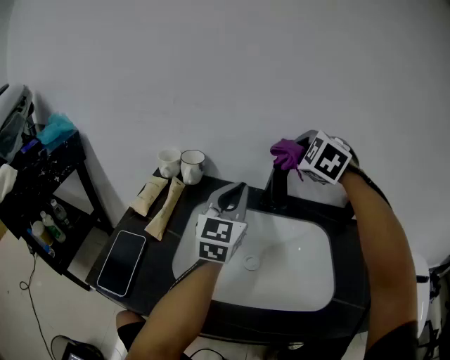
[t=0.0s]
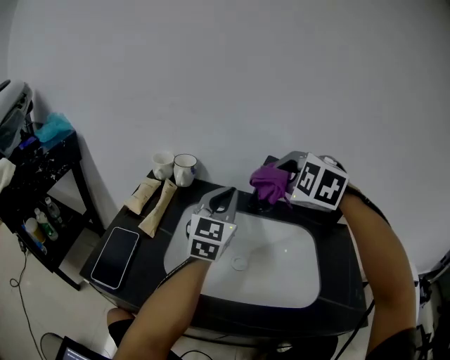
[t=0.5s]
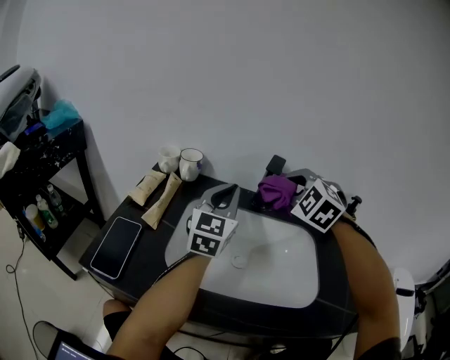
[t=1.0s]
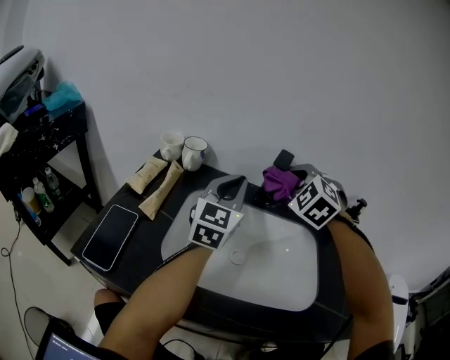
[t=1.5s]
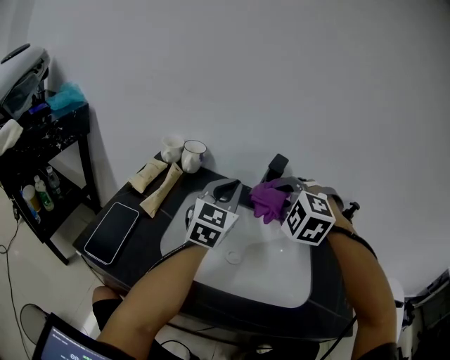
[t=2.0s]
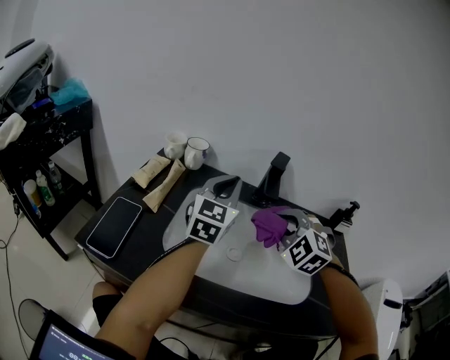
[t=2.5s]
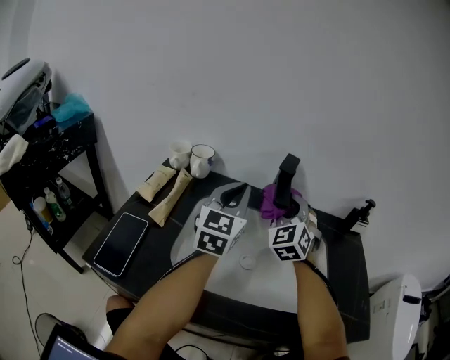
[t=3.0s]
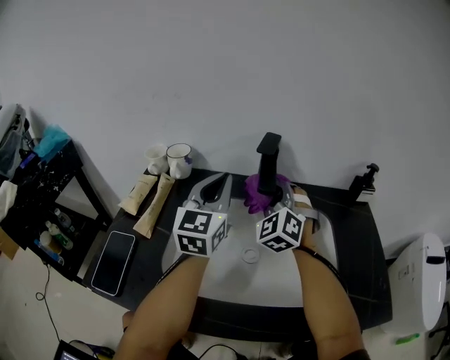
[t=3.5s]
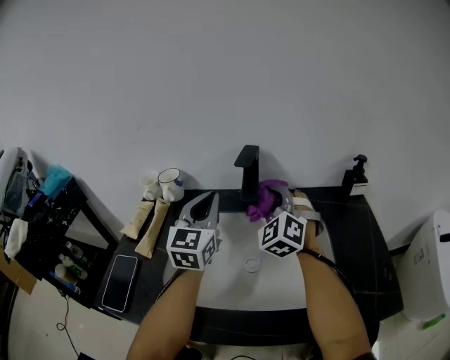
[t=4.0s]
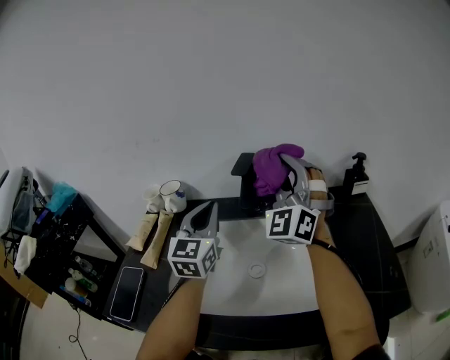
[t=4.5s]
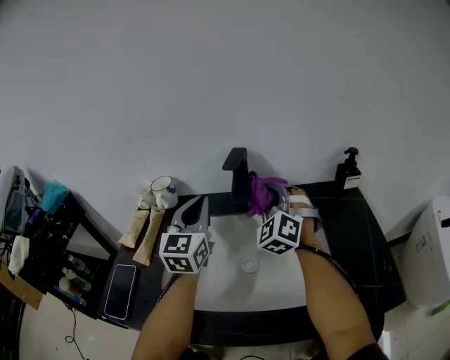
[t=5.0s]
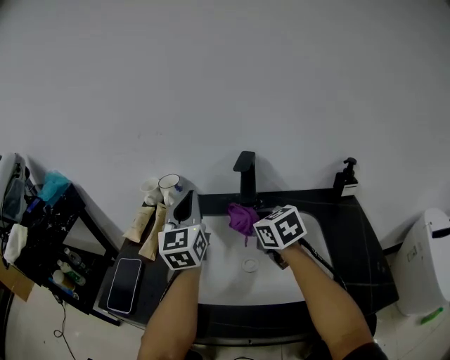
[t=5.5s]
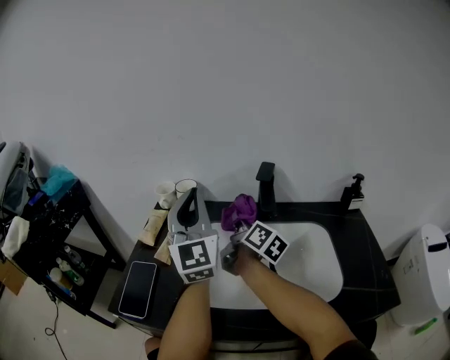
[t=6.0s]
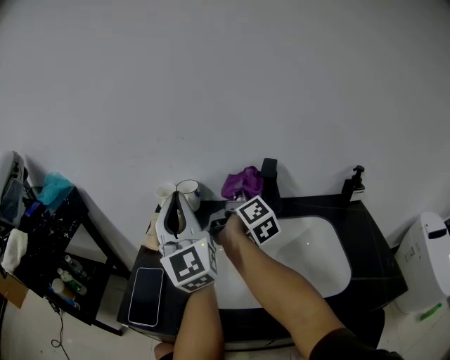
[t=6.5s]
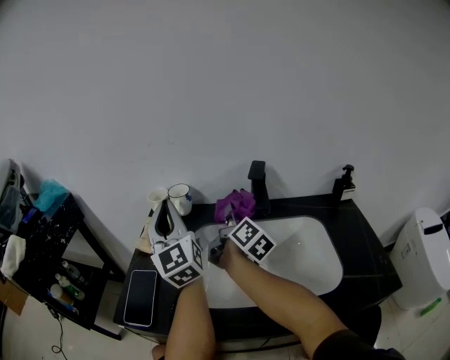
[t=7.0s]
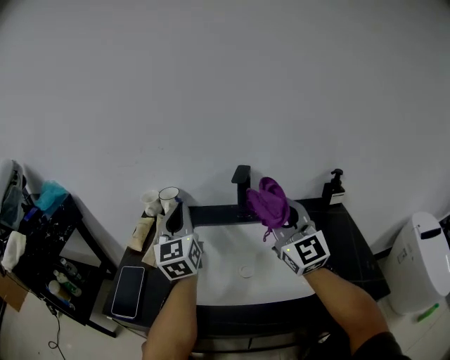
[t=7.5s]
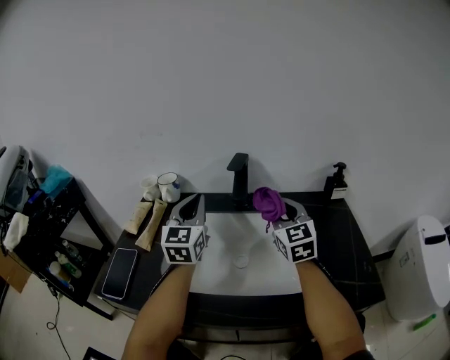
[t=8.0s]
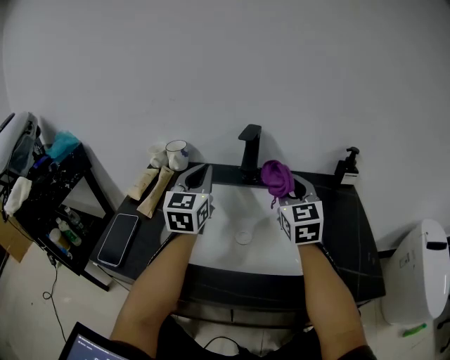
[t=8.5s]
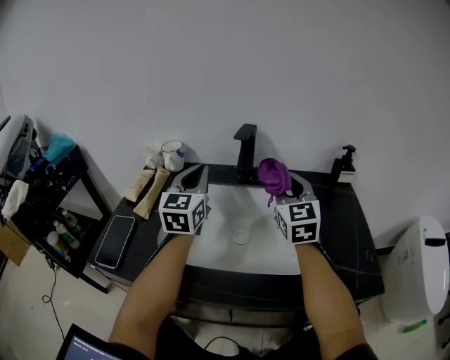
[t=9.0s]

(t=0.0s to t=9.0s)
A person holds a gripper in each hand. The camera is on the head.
t=0.0s - t=2.0s: The right gripper swings forward and backward, approximately 10 cm each way, with 2 reversals, and rotates approximately 20 degrees.
t=2.0s - t=4.5s: The right gripper travels to the right and upward by about 10 cm, and tips its fingers upward by about 60 degrees.
t=4.5s - t=7.0s: The left gripper shifts approximately 20 cm to the left and upward, and changes its angle by about 30 degrees. The right gripper moves up and down over about 15 cm, changing direction 2 times, and twists about 110 degrees clockwise, seen from behind.
t=7.0s - t=9.0s: The left gripper is displaced to the right and downward by some 15 cm, and swivels approximately 30 degrees; the right gripper goes approximately 20 cm to the right and backward, and rolls counterclockwise, seen from behind, by about 70 degrees.

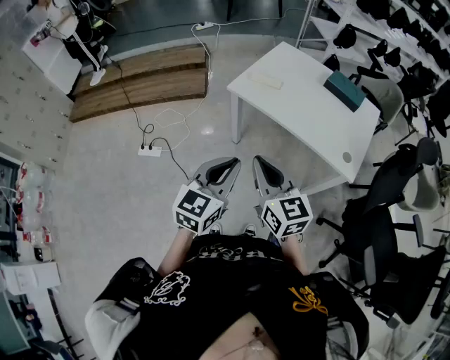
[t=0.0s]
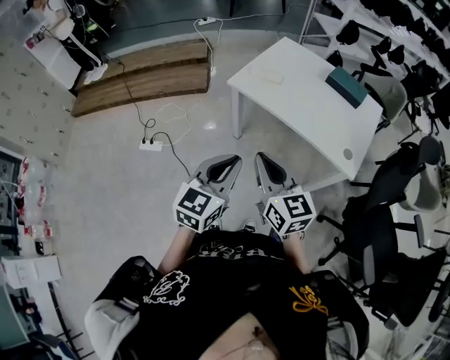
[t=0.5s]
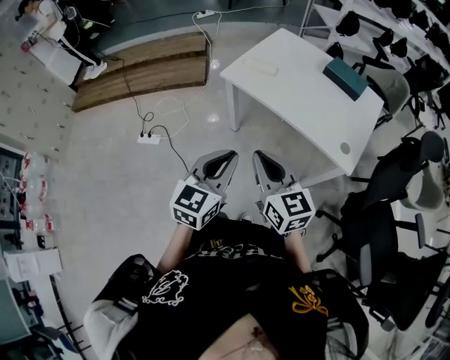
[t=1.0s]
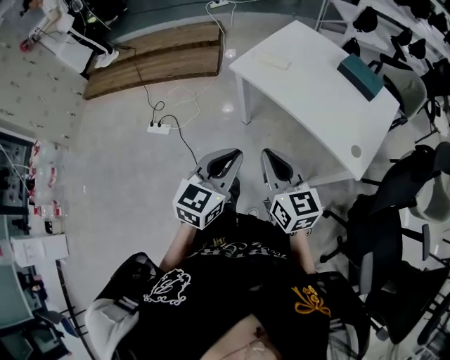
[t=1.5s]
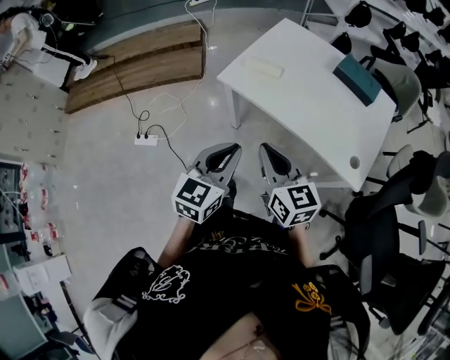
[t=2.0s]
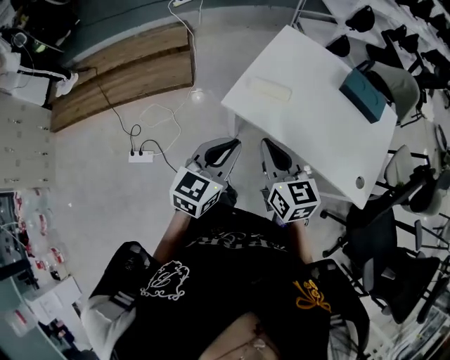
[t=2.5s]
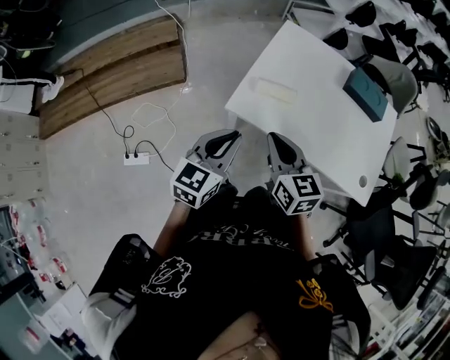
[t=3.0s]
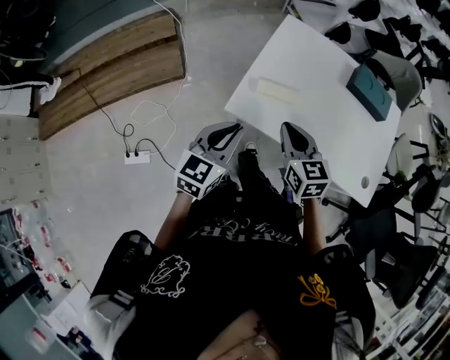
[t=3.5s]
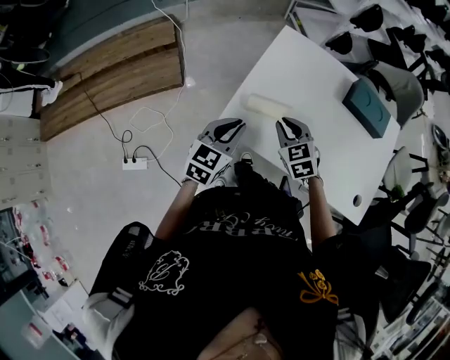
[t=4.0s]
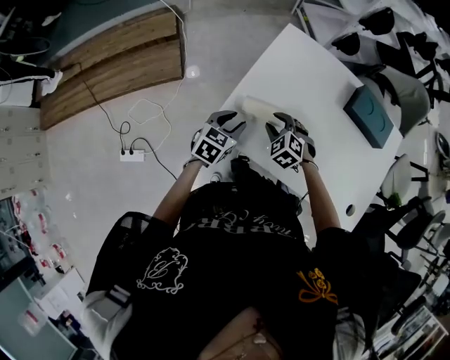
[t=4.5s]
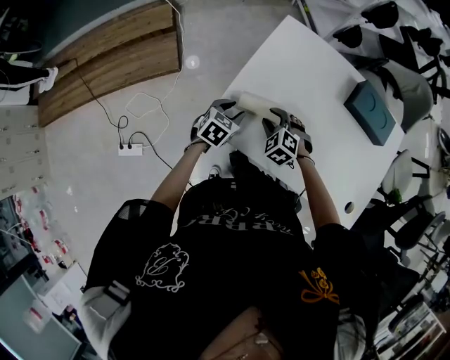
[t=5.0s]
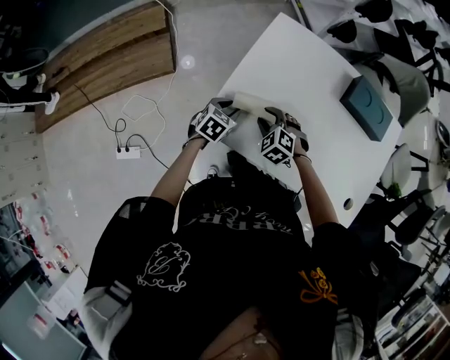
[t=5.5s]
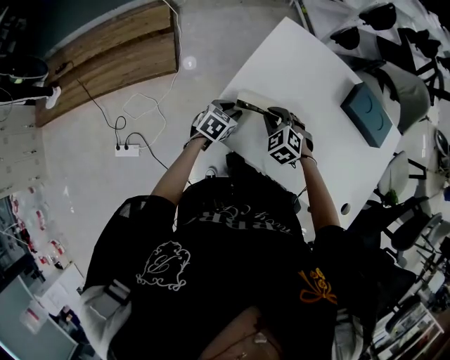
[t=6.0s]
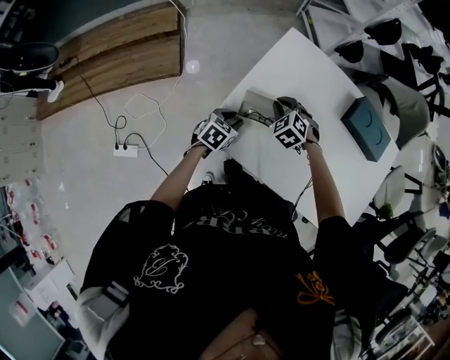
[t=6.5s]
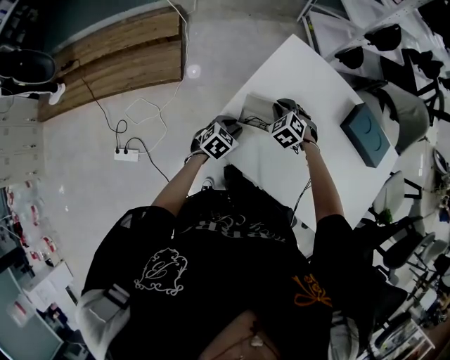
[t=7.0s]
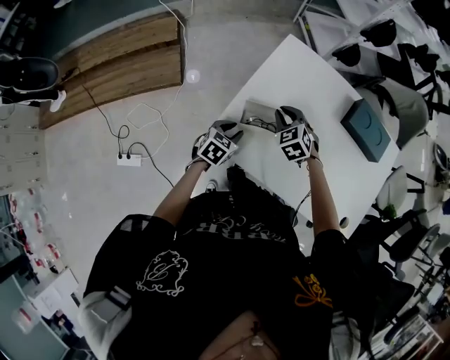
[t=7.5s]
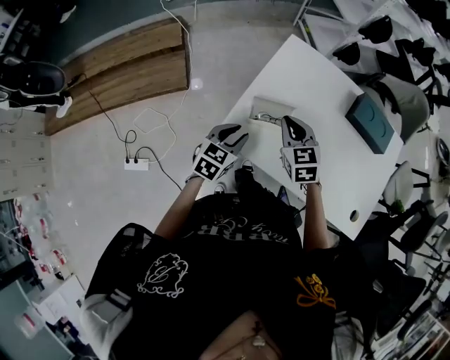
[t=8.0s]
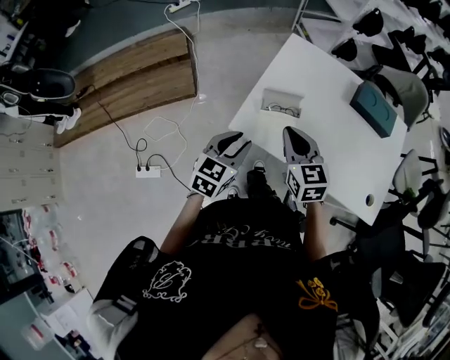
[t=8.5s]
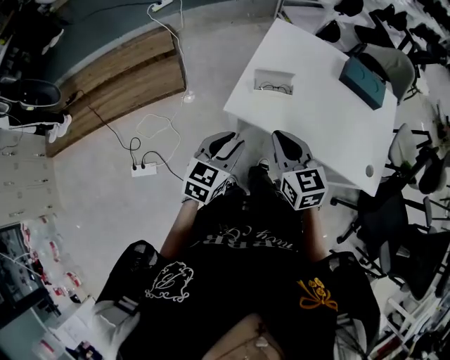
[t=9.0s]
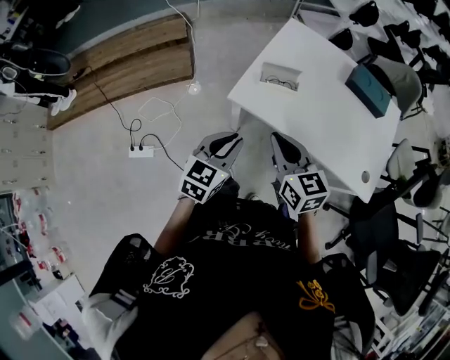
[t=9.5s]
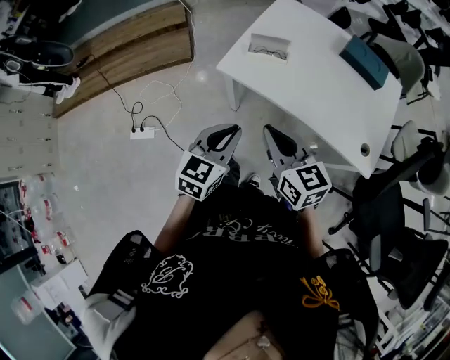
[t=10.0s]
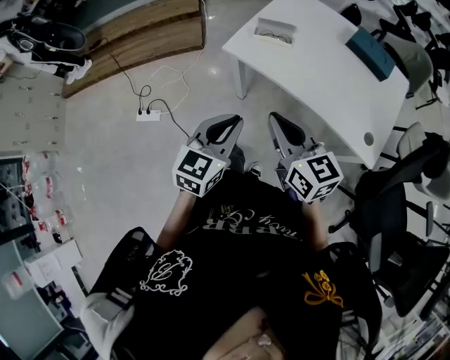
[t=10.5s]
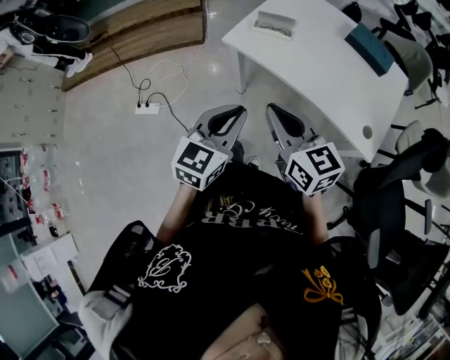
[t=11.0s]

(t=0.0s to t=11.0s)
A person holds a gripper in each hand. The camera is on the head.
t=0.0s - t=2.0s: Both grippers travel together forward, roughly 15 cm.
t=2.0s - t=3.5s: The left gripper heads forward and to the left, covering approximately 30 cm; the right gripper is displaced forward by approximately 30 cm, and turns by some 20 degrees.
t=3.5s - t=5.5s: The two grippers go approximately 25 cm downward and forward. The left gripper angles its fingers downward, by about 30 degrees, and opens its fingers. The right gripper rotates around the line of its fingers by about 50 degrees, counterclockwise from behind, and opens.
t=5.5s - t=7.5s: The right gripper is displaced forward and upward by roughly 10 cm, and closes up.
t=7.5s - t=9.0s: Both grippers move backward and upward, some 30 cm. The right gripper rotates roughly 40 degrees, while the left gripper rotates about 20 degrees.
t=9.0s - t=11.0s: The left gripper moves backward and to the right, approximately 25 cm, and closes its fingers, while the right gripper shifts approximately 25 cm backward, and turns by approximately 20 degrees.

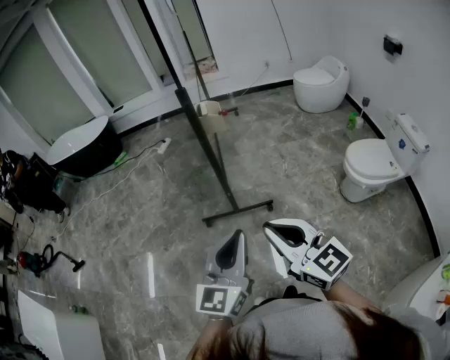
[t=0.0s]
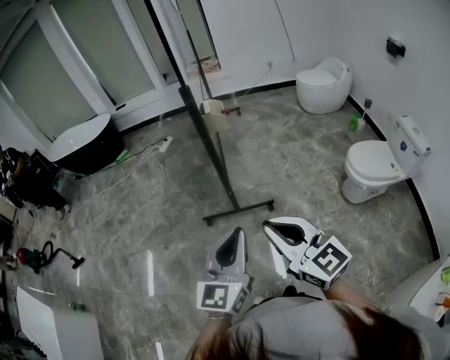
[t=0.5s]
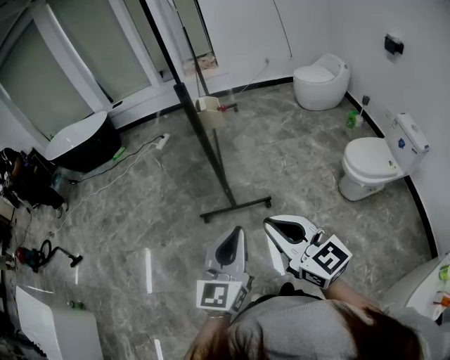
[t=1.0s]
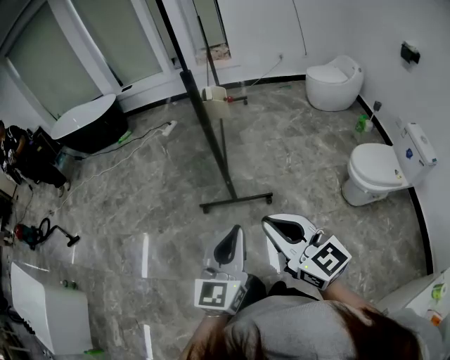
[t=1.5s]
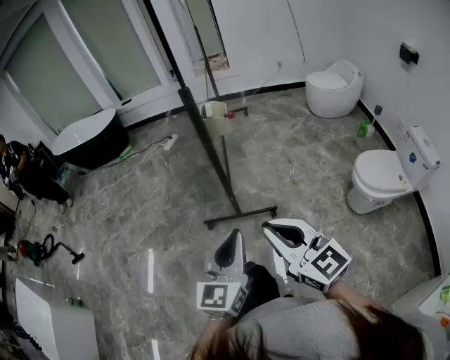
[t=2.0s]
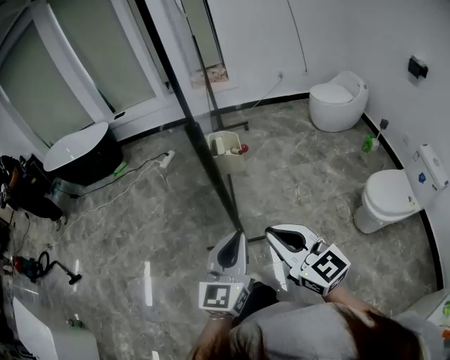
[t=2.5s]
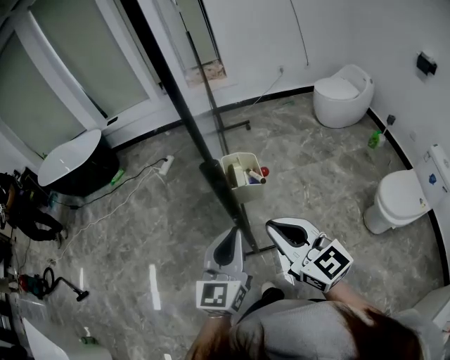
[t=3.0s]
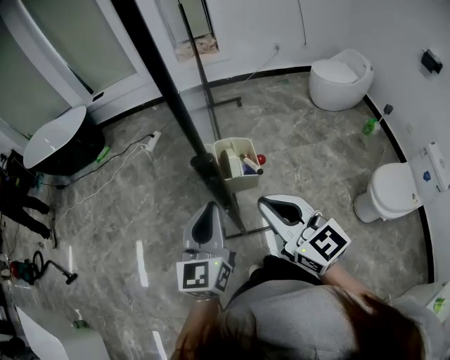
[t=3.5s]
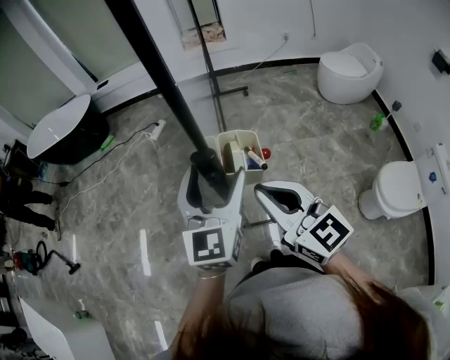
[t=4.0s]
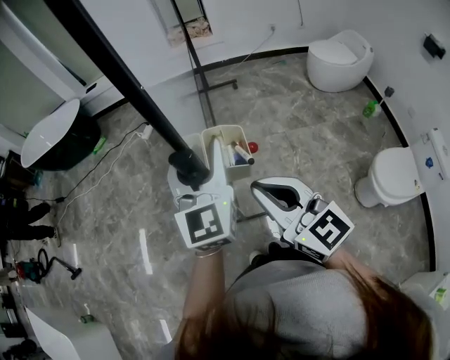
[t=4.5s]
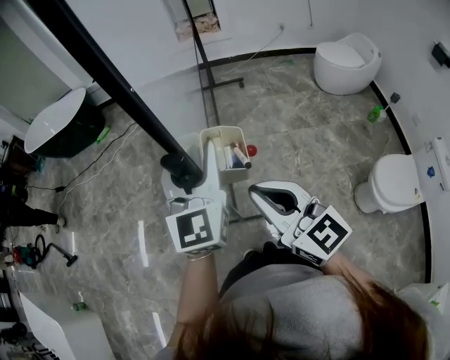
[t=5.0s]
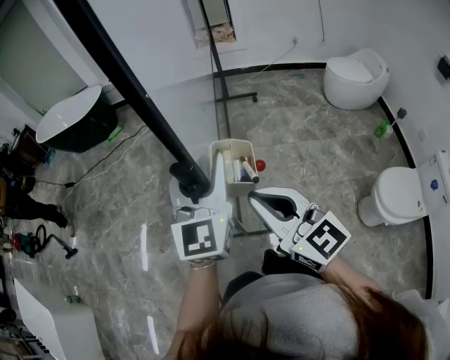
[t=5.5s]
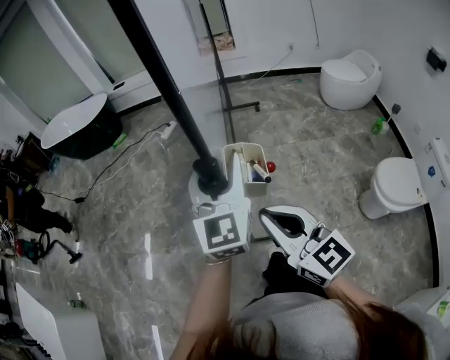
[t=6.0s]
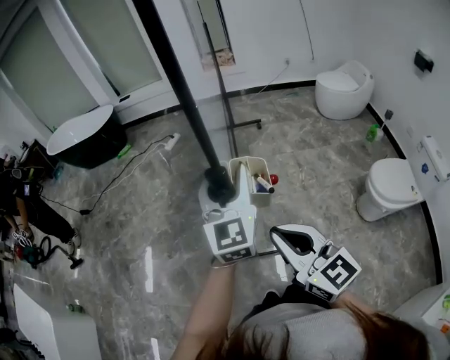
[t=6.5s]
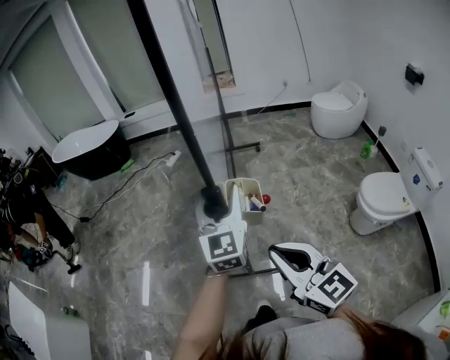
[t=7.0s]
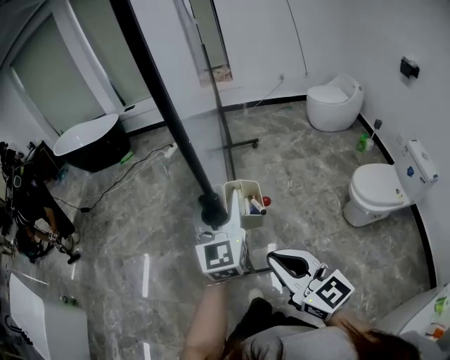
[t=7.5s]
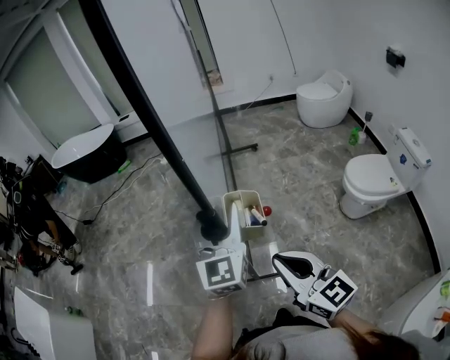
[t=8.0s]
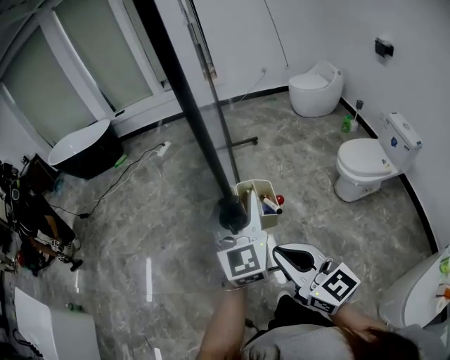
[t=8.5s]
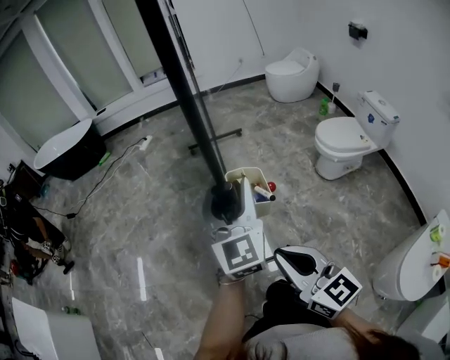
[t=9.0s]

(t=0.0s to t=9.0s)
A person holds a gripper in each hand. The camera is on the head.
t=0.0s - t=2.0s: The left gripper travels forward by roughly 5 cm. The right gripper shifts by approximately 5 cm.
t=2.0s - t=4.5s: Both grippers move forward, some 40 cm. The left gripper opens up.
t=4.5s - t=7.0s: The two grippers go some 30 cm backward.
t=7.0s - t=9.0s: The two grippers go some 30 cm backward.
